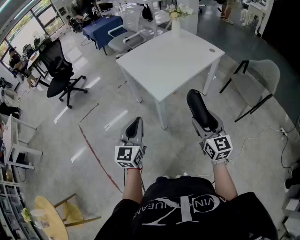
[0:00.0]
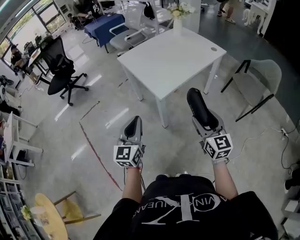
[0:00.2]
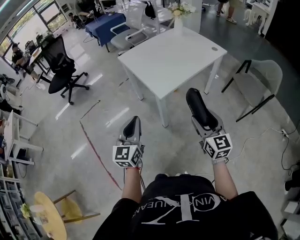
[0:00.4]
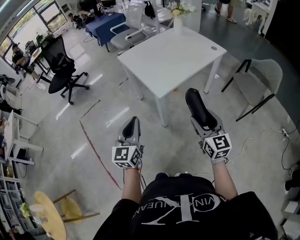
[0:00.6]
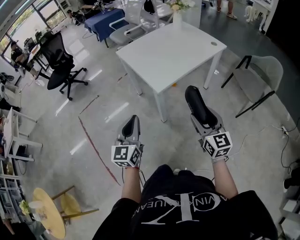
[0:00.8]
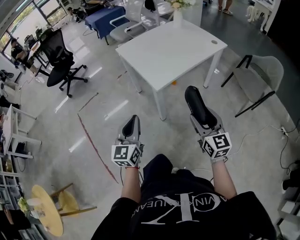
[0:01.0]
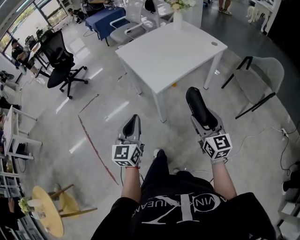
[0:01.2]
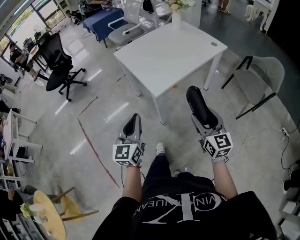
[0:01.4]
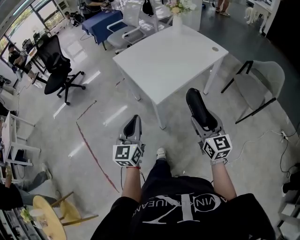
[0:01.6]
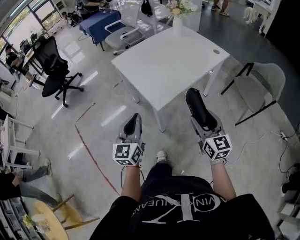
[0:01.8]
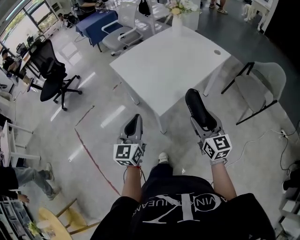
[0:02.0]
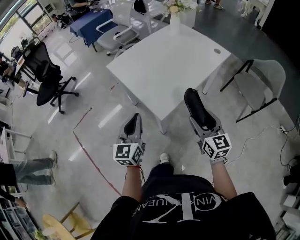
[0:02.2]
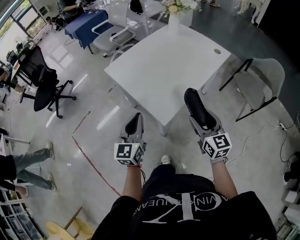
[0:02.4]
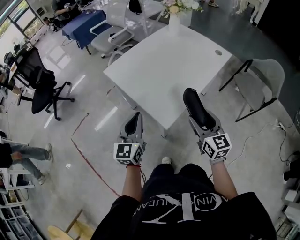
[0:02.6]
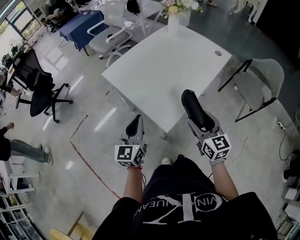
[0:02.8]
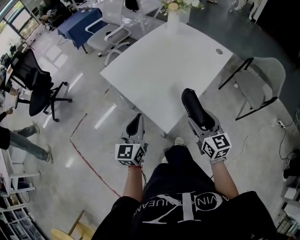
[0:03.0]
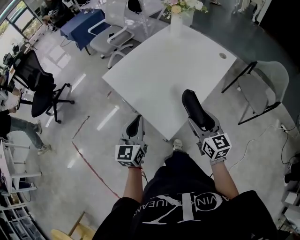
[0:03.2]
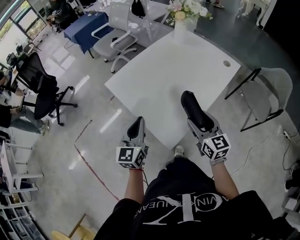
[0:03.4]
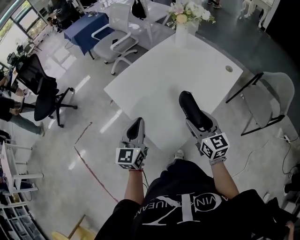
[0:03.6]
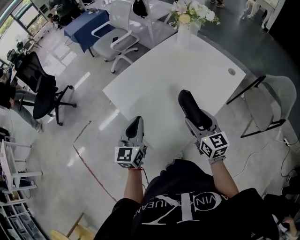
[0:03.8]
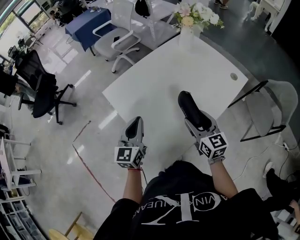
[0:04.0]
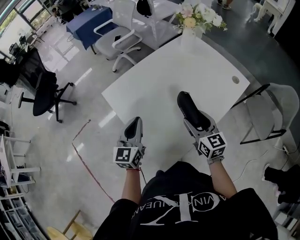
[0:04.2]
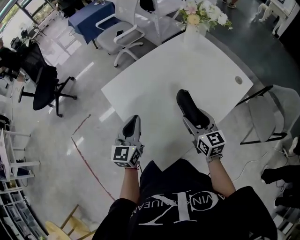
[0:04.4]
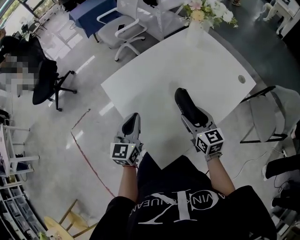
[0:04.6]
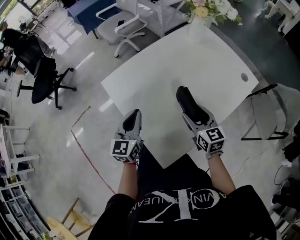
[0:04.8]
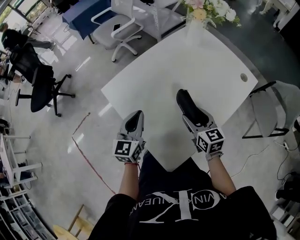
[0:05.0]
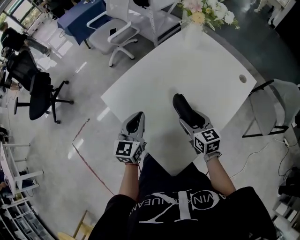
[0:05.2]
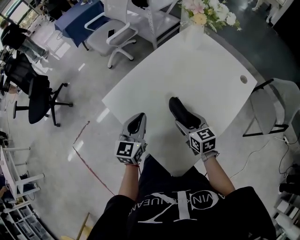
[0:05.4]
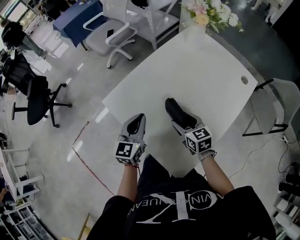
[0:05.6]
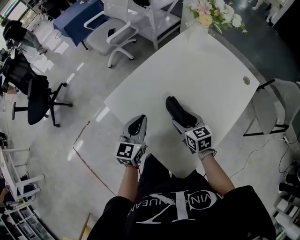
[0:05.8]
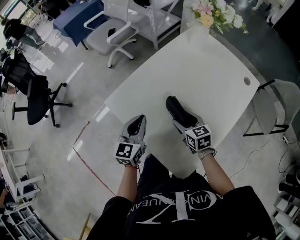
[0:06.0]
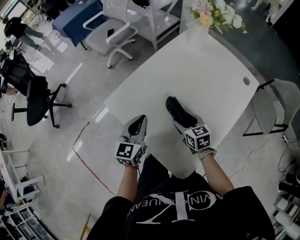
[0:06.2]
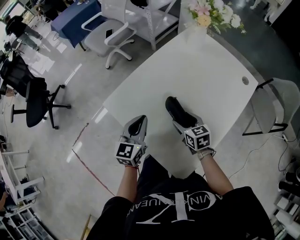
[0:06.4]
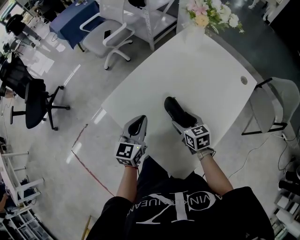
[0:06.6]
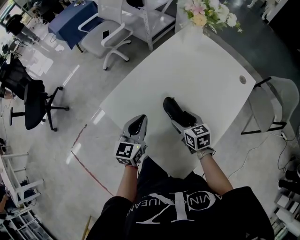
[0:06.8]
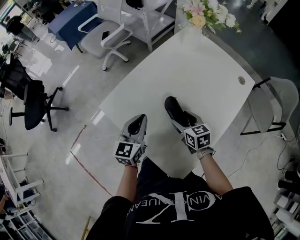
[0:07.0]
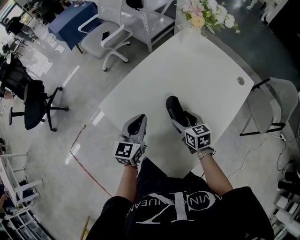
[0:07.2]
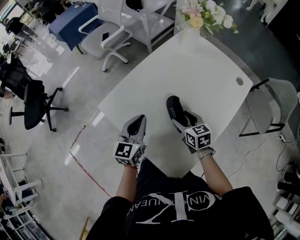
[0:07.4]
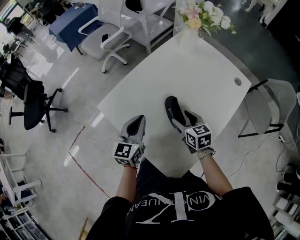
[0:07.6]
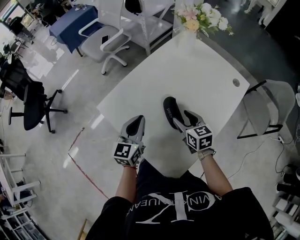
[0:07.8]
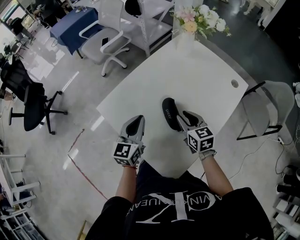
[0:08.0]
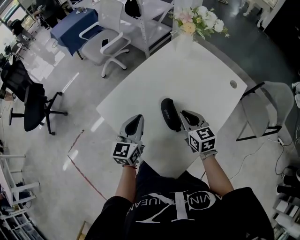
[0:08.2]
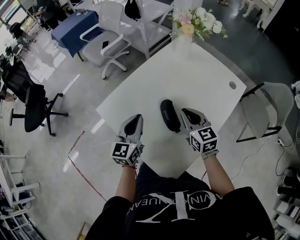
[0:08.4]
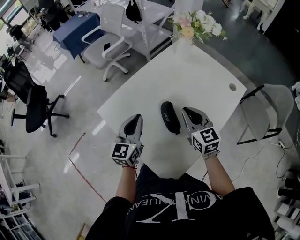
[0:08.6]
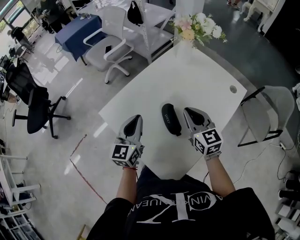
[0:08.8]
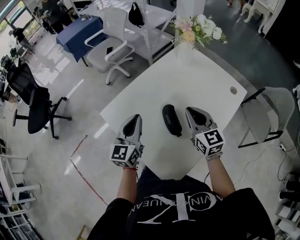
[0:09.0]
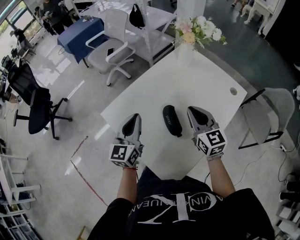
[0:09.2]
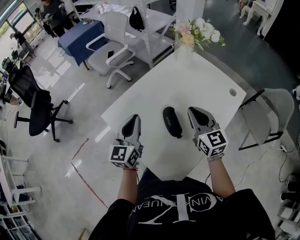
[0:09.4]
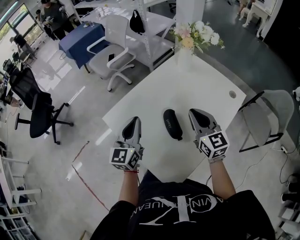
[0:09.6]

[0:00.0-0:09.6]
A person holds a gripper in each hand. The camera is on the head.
0:00.0 to 0:01.6: Both grippers travel together forward, roughly 5 cm.
0:01.6 to 0:03.2: Both grippers move forward, roughly 25 cm.
0:03.2 to 0:04.8: Both grippers travel together forward, roughly 20 cm.
0:04.8 to 0:06.4: The left gripper goes some 10 cm forward. The right gripper shifts approximately 10 cm to the left, downward and forward.
0:06.4 to 0:08.0: The right gripper is displaced upward and to the right by about 10 cm, and closes its fingers.
0:08.0 to 0:09.6: The right gripper moves upward, about 15 cm, changes its angle by approximately 20 degrees, and closes its fingers; the left gripper is displaced upward by some 10 cm.

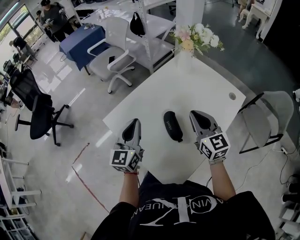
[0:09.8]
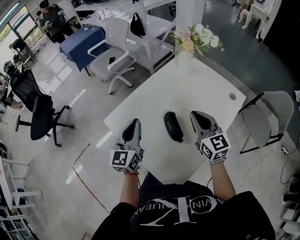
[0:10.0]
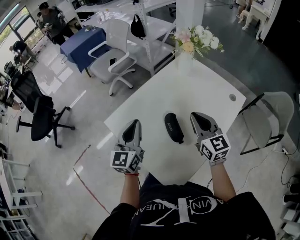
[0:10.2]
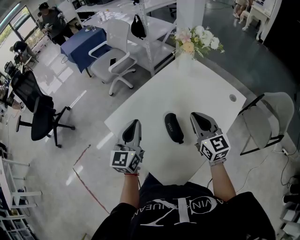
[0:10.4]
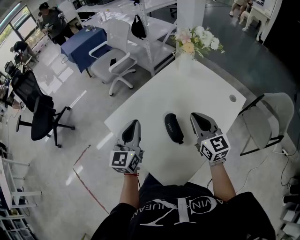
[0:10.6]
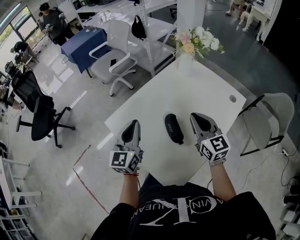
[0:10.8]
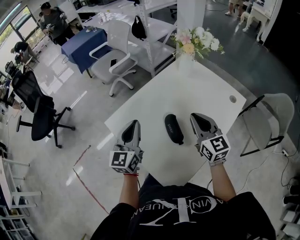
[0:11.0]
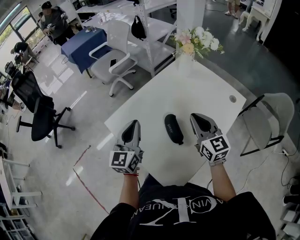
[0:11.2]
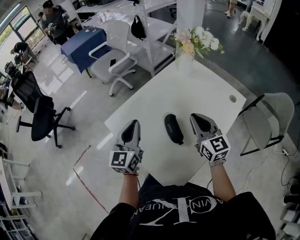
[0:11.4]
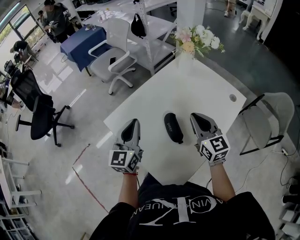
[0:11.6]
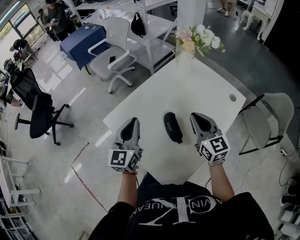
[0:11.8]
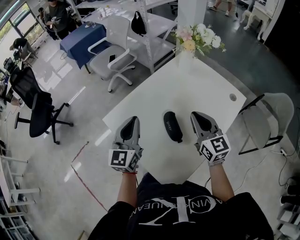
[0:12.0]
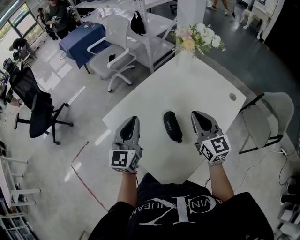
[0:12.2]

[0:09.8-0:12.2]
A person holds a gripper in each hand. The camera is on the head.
0:09.8 to 0:11.0: The two grippers keep their place.
0:11.0 to 0:12.2: Neither gripper changes place.

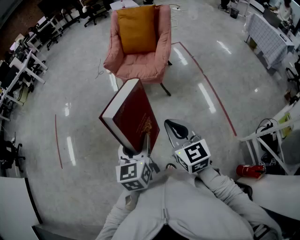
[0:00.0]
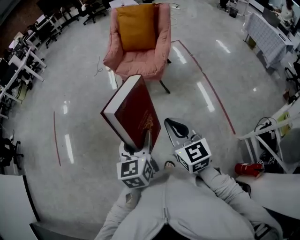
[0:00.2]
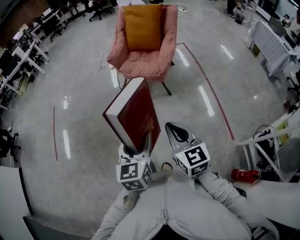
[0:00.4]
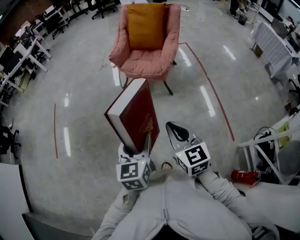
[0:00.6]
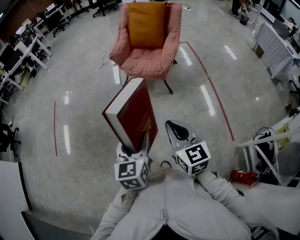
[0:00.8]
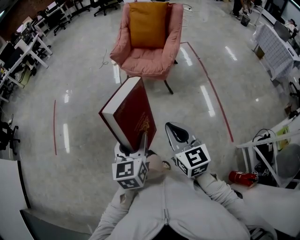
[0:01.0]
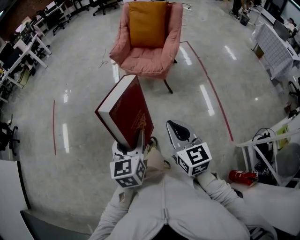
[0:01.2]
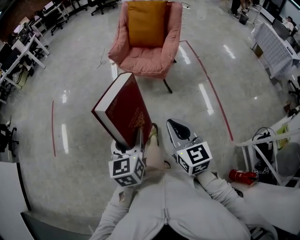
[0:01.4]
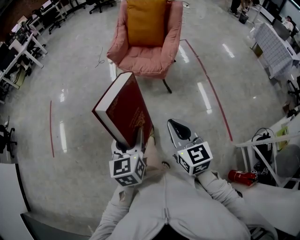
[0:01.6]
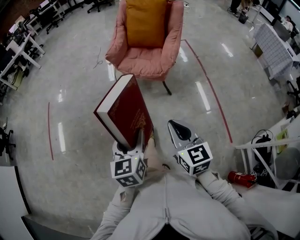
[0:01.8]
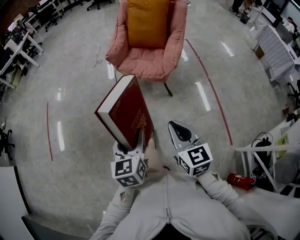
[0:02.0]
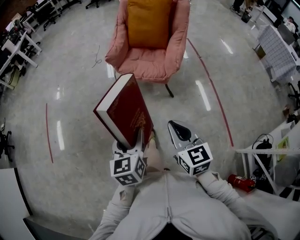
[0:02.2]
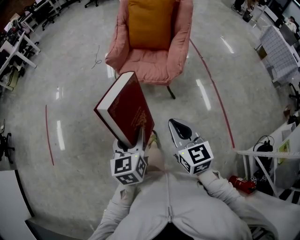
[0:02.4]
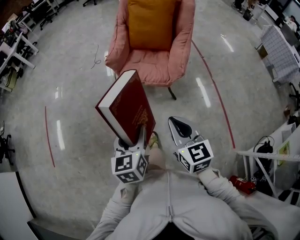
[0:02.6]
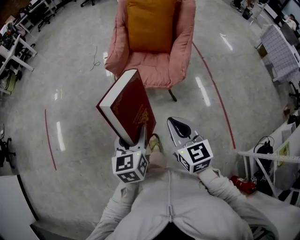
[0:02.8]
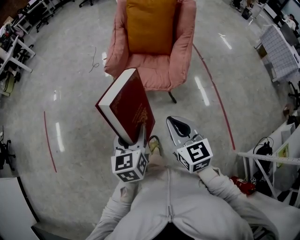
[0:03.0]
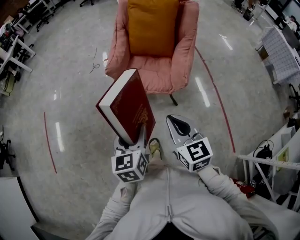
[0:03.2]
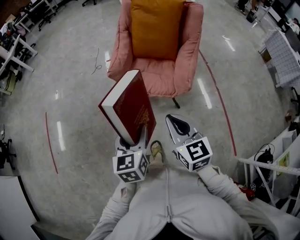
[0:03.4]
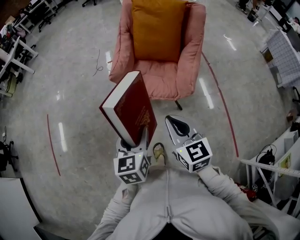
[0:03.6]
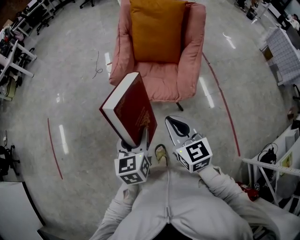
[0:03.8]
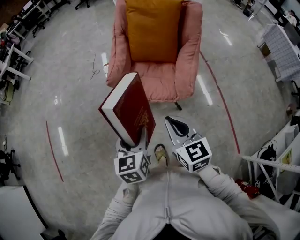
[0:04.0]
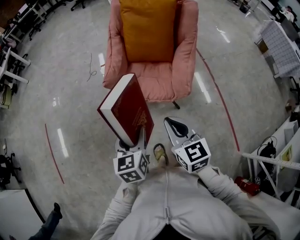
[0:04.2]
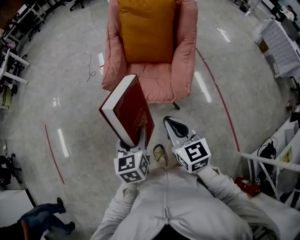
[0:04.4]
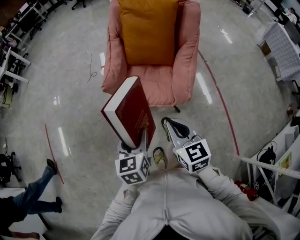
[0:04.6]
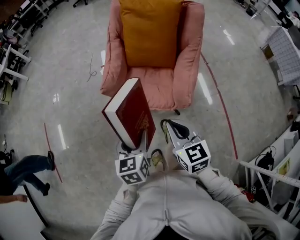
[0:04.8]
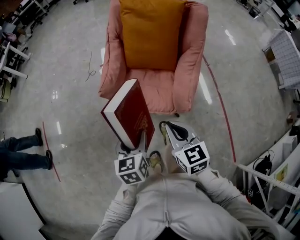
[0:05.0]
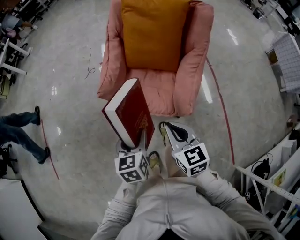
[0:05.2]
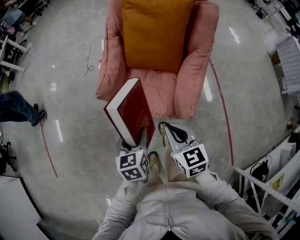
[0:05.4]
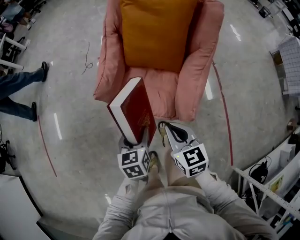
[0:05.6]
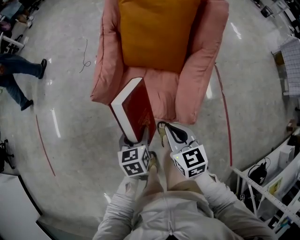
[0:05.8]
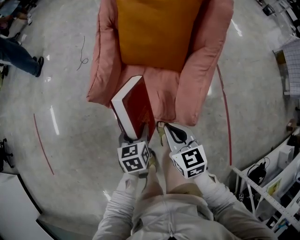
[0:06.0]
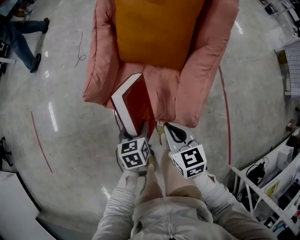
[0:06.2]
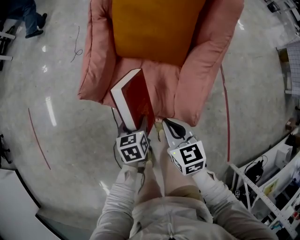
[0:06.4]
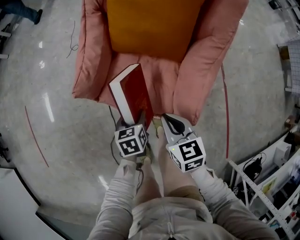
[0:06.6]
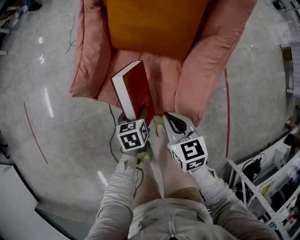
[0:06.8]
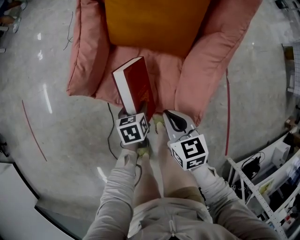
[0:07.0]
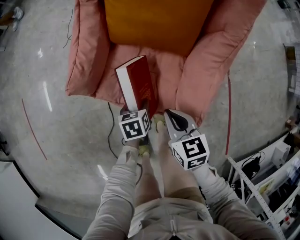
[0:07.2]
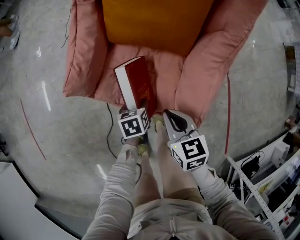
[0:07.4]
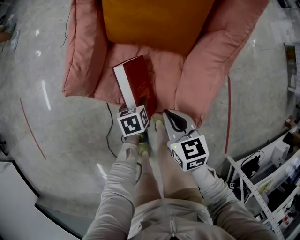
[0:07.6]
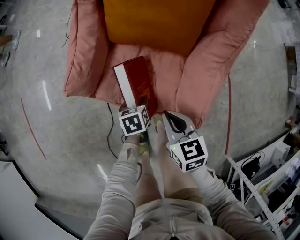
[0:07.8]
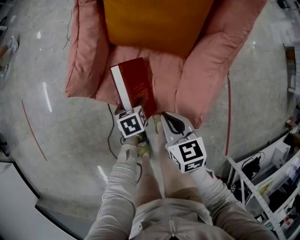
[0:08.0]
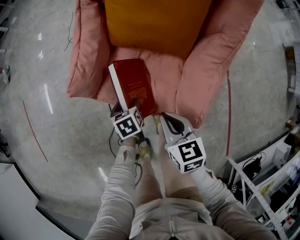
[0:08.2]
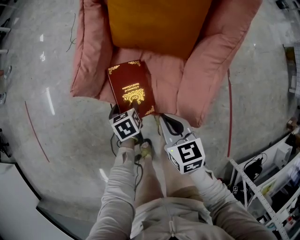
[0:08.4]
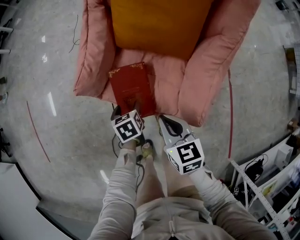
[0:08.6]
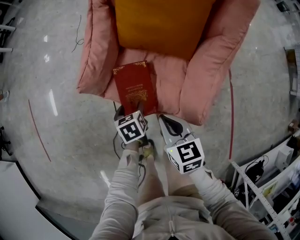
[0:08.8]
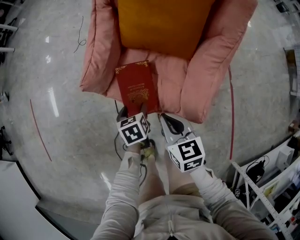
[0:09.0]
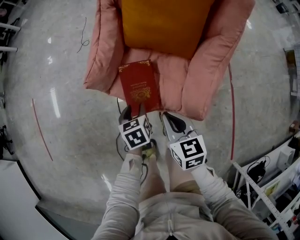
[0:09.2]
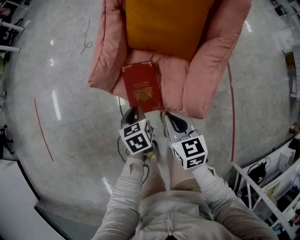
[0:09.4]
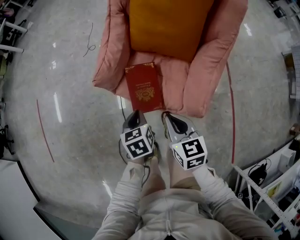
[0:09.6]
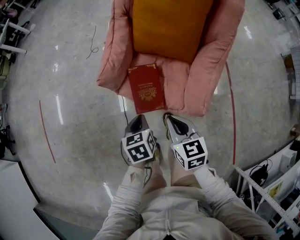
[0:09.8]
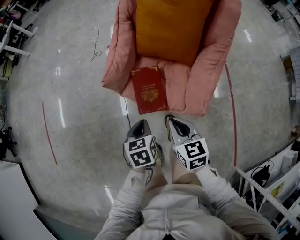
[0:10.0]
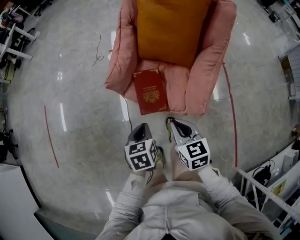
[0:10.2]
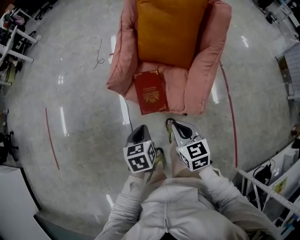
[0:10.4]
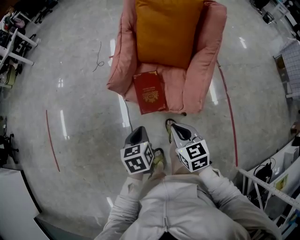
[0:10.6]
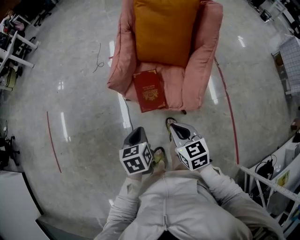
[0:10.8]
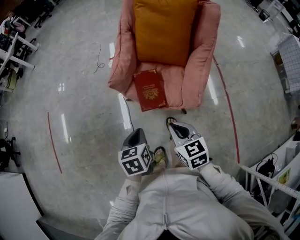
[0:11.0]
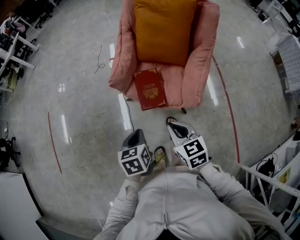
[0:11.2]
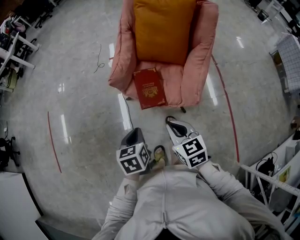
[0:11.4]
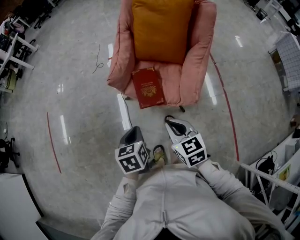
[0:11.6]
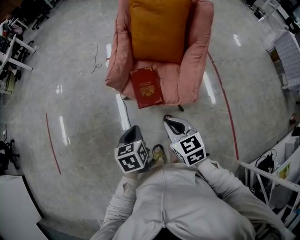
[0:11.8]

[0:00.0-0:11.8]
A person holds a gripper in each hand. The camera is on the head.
0:00.0 to 0:01.4: The grippers make only small movements.
0:01.4 to 0:03.0: The grippers both shift forward by some 30 cm.
0:03.0 to 0:04.4: Both grippers travel together forward, roughly 15 cm.
0:04.4 to 0:06.0: The left gripper goes approximately 25 cm downward, forward and to the right. Meanwhile the right gripper travels forward, downward and to the right by about 25 cm.
0:06.0 to 0:07.4: The right gripper is displaced downward and forward by about 10 cm, while the left gripper moves downward, about 20 cm.
0:07.4 to 0:08.8: The left gripper moves to the left and upward, some 10 cm. Meanwhile the right gripper ends up approximately 5 cm from where it was.
0:08.8 to 0:10.4: The left gripper moves upward and backward, about 25 cm, and closes its fingers. The right gripper is displaced backward and upward by some 15 cm.
0:10.4 to 0:11.8: The grippers both shift backward by some 5 cm.
